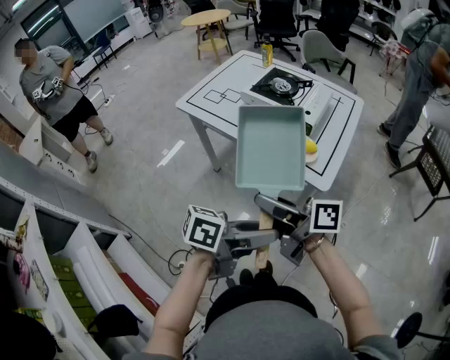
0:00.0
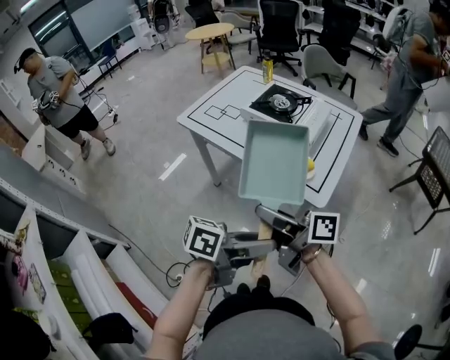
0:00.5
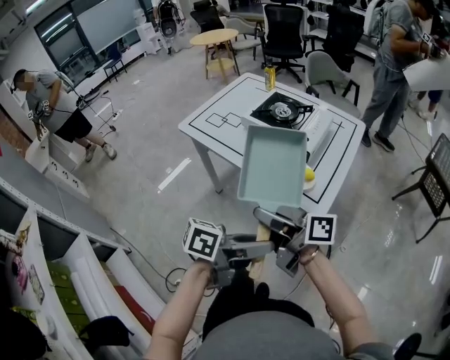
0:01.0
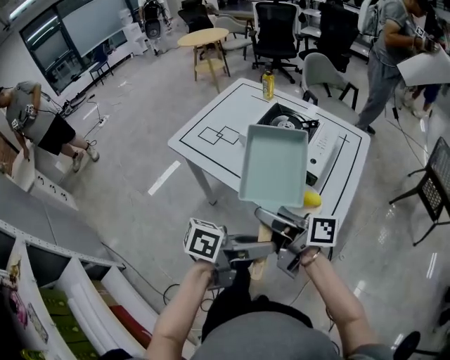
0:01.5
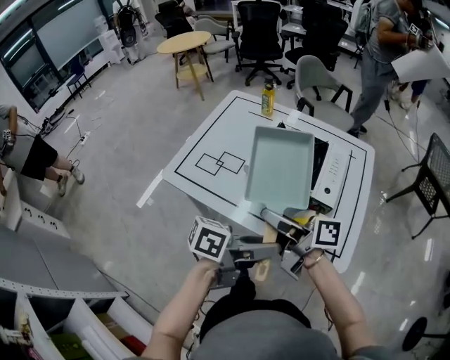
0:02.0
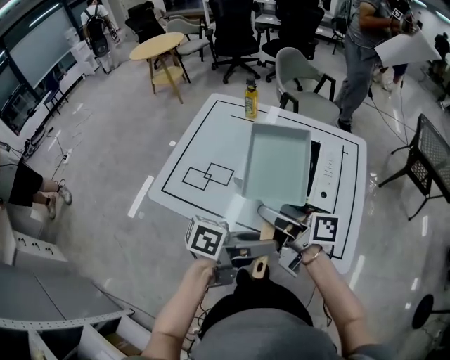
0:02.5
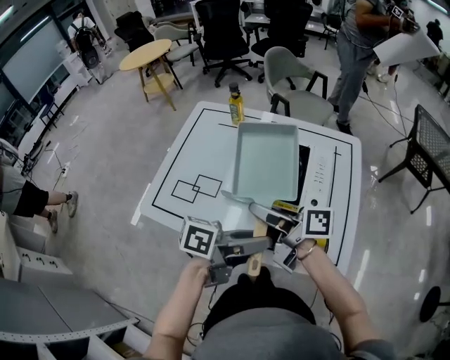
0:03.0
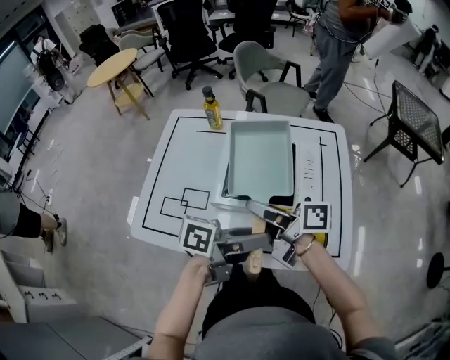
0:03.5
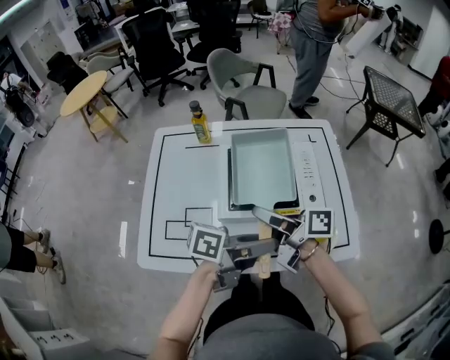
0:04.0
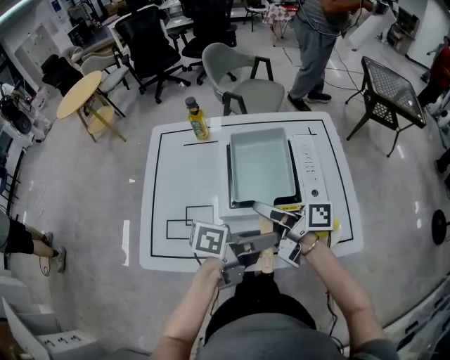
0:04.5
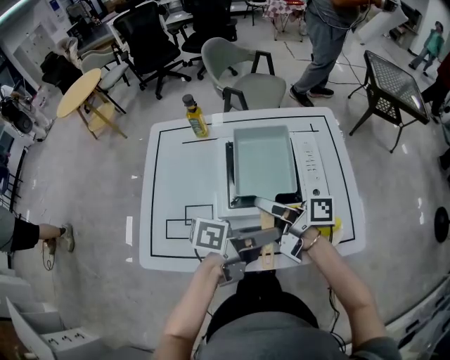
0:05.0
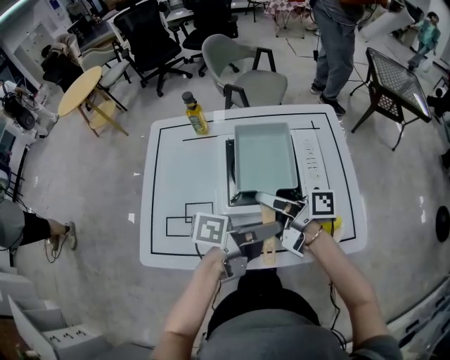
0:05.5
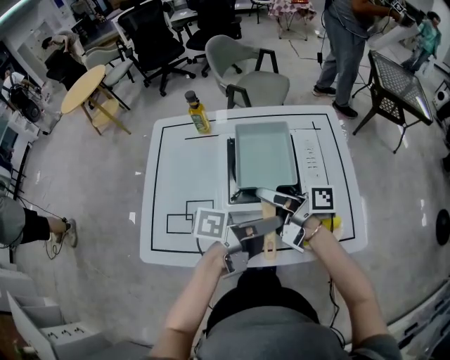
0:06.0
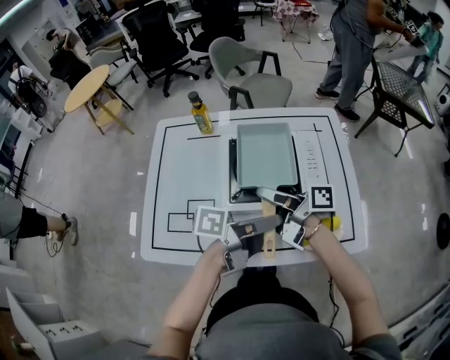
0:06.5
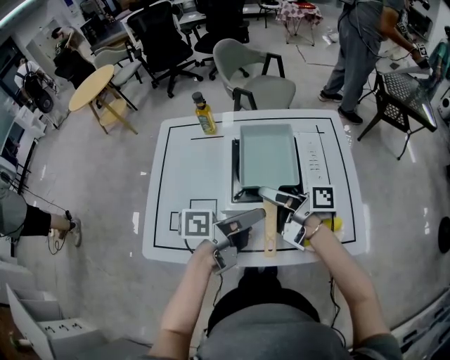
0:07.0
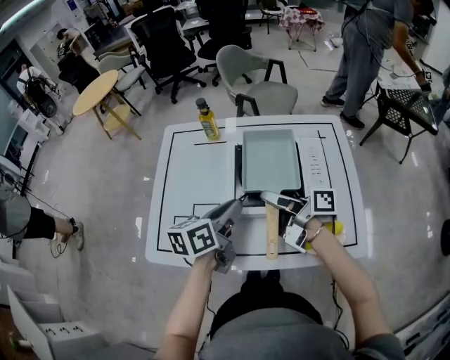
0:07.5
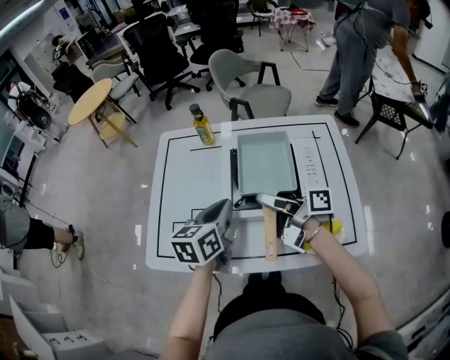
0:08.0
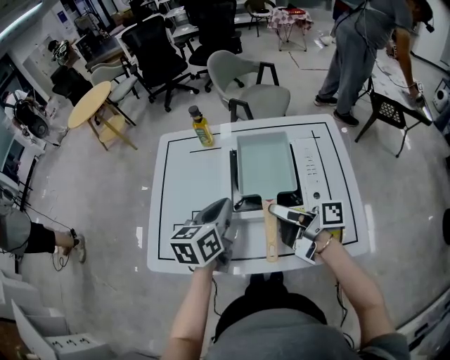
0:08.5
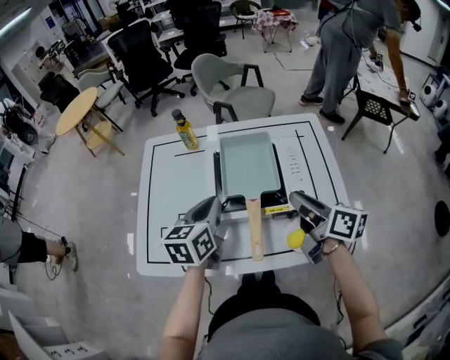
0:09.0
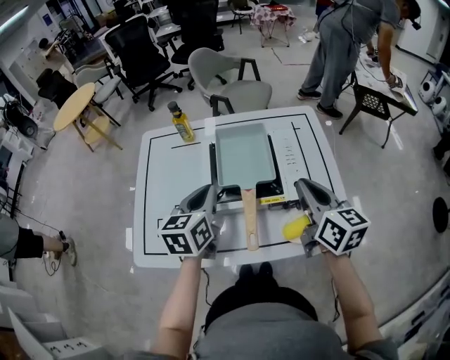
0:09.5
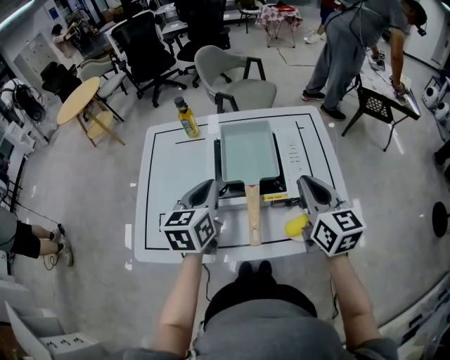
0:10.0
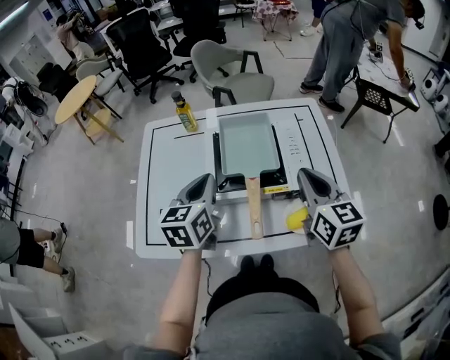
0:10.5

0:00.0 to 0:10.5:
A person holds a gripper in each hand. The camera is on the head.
0:00.0 to 0:02.0: The left gripper shifts by approximately 30 cm, while the right gripper moves approximately 30 cm.
0:02.0 to 0:04.0: The right gripper ends up about 15 cm from where it was, and rotates some 30 degrees. Meanwhile the left gripper ends up about 15 cm from where it was, and swivels roughly 30 degrees.
0:04.0 to 0:06.5: The grippers make only small movements.
0:06.5 to 0:08.5: The left gripper shifts by about 15 cm, turns by about 70 degrees, and closes.
0:08.5 to 0:10.5: The right gripper heads to the right and upward, covering some 15 cm, rolls counterclockwise, seen from behind, by some 60 degrees, and closes up.

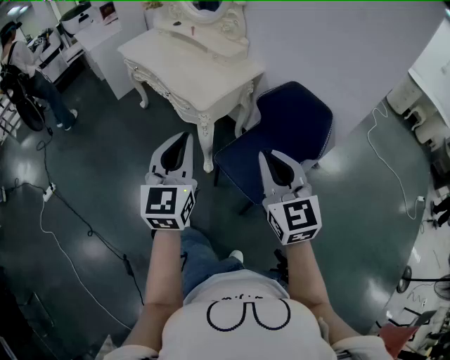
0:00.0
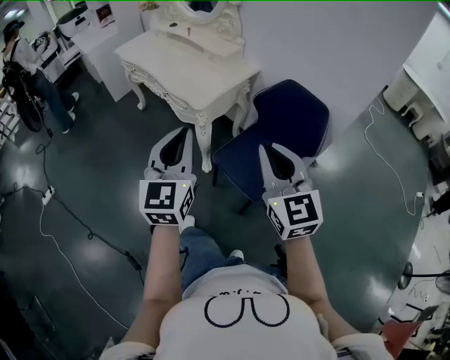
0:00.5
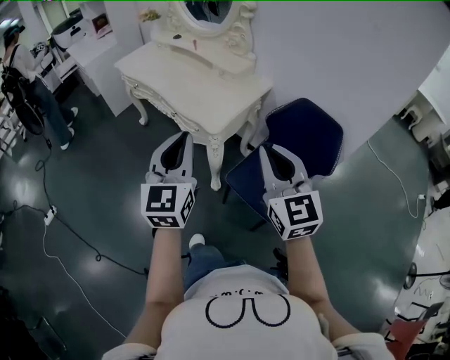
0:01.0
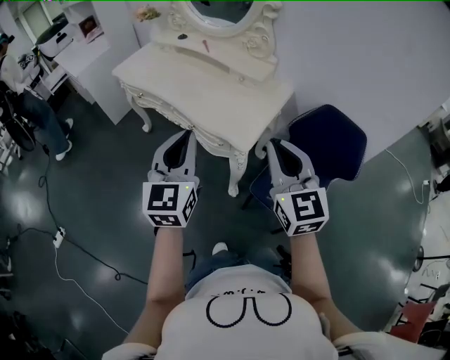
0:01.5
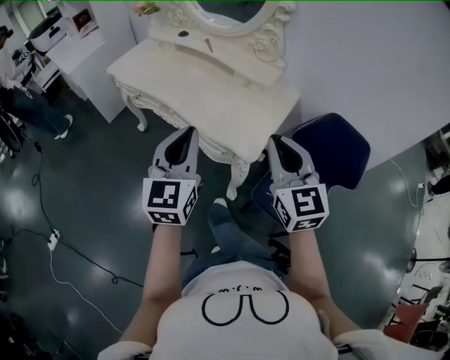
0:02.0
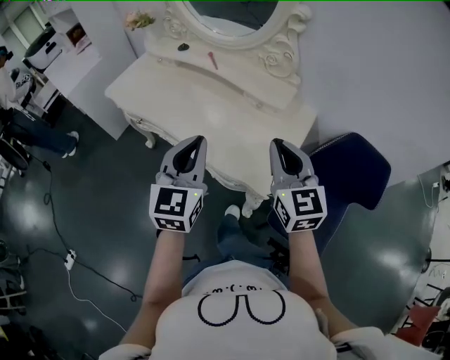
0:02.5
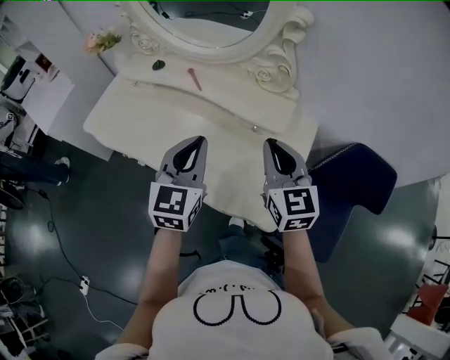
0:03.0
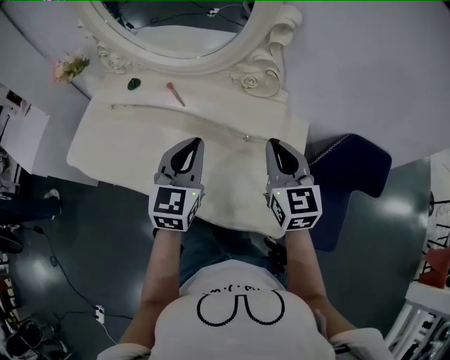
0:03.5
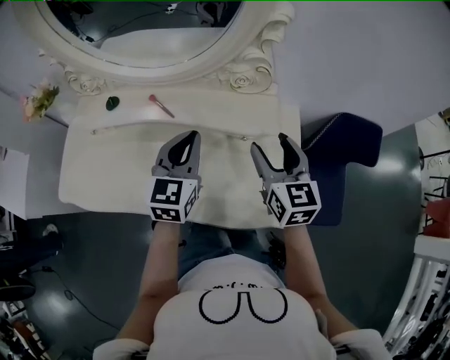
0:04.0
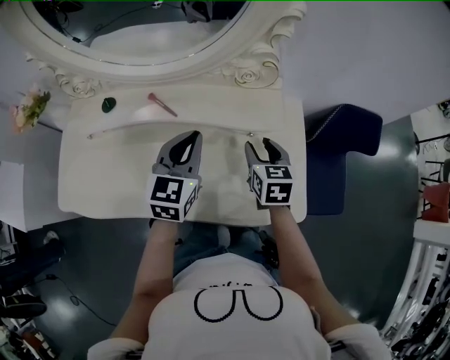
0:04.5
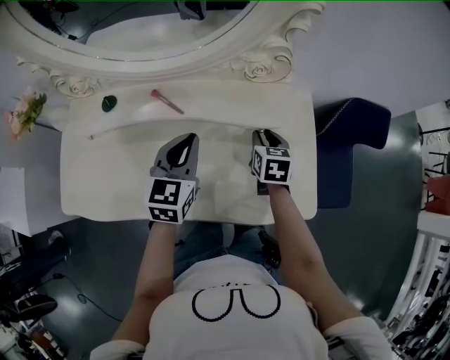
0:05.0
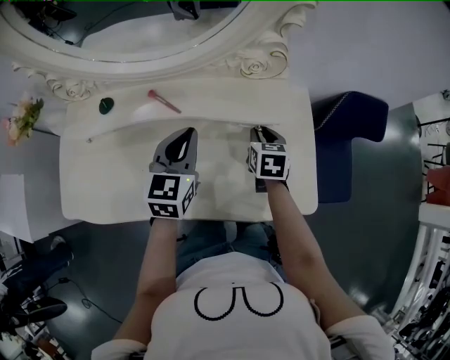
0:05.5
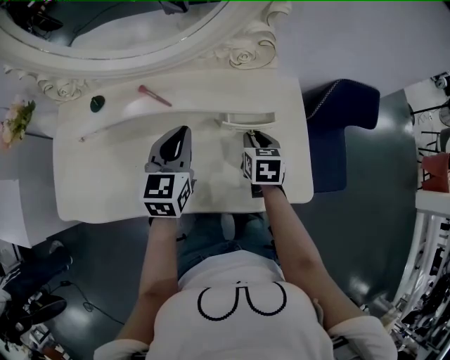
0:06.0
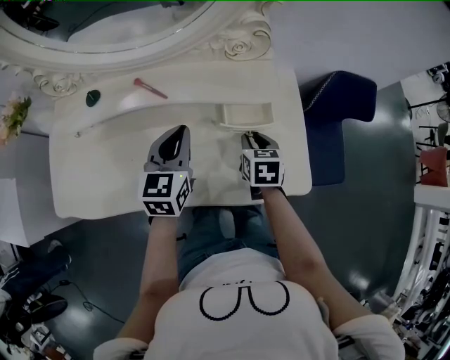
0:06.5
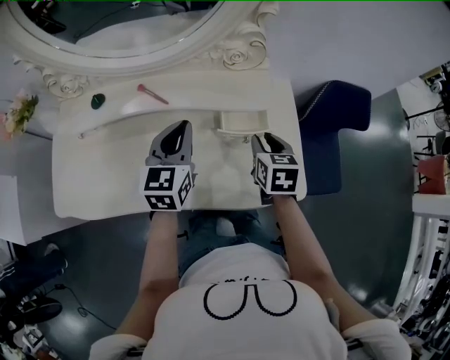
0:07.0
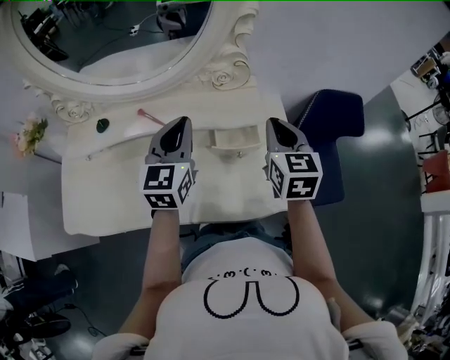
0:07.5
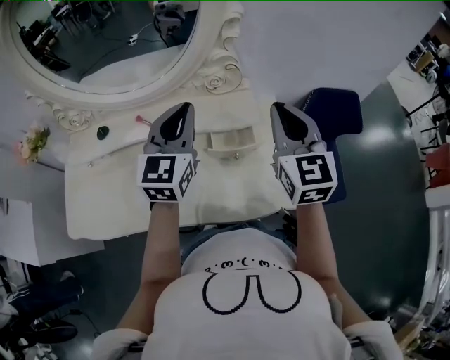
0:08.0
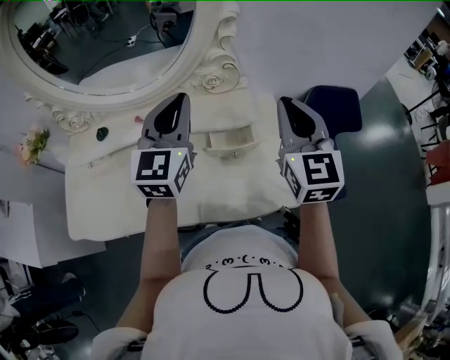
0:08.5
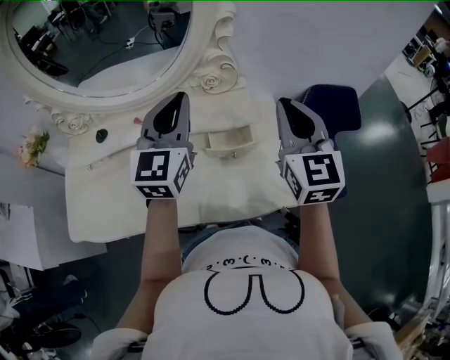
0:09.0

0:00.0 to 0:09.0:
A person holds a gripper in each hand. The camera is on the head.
0:00.0 to 0:02.0: The grippers both shift forward and to the left by about 35 cm.
0:02.0 to 0:04.5: The left gripper moves about 50 cm, and changes its angle by some 40 degrees; the right gripper changes place by roughly 40 cm, angles its fingers downward, by approximately 30 degrees, and opens.
0:07.0 to 0:09.0: Both grippers move upward, roughly 20 cm. The right gripper points its fingers approximately 40 degrees further upward, and closes up. The left gripper swivels some 20 degrees.

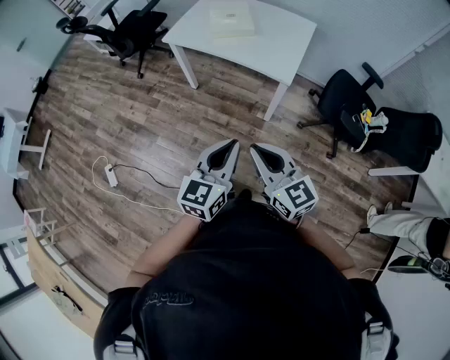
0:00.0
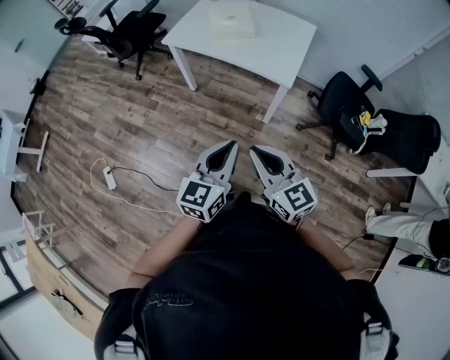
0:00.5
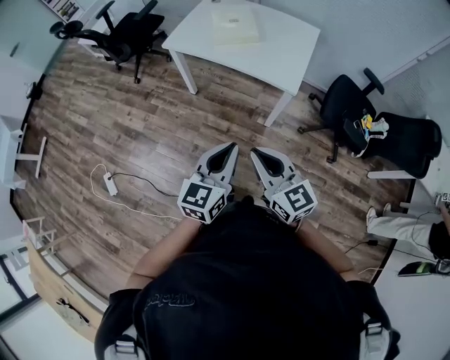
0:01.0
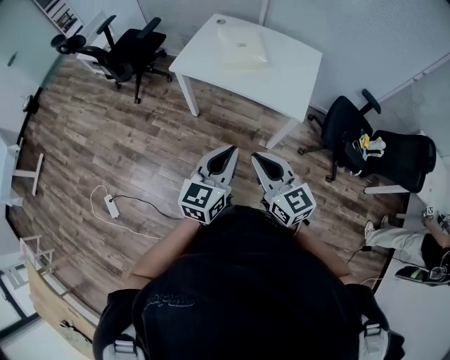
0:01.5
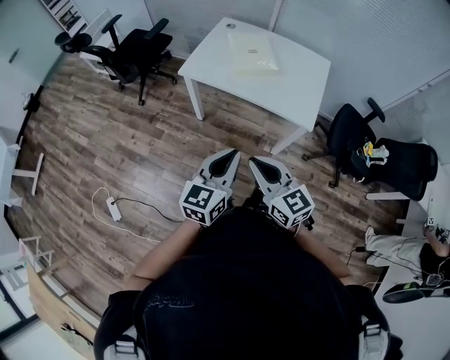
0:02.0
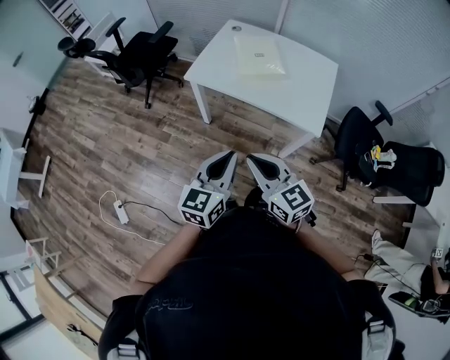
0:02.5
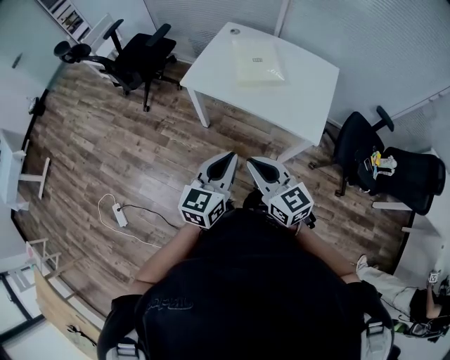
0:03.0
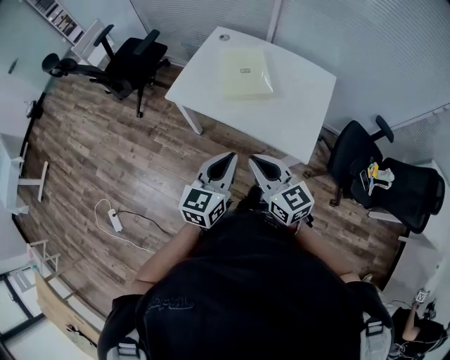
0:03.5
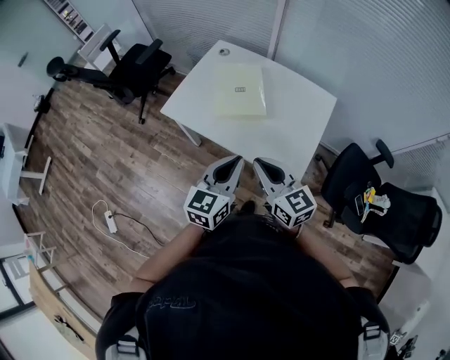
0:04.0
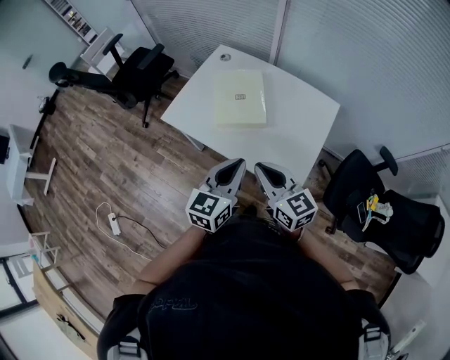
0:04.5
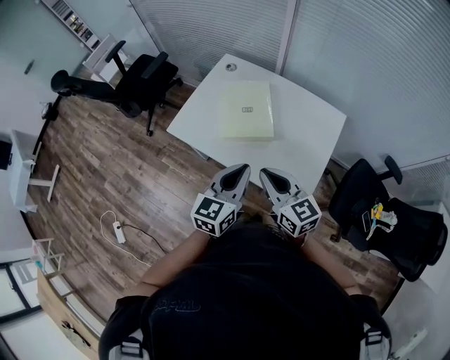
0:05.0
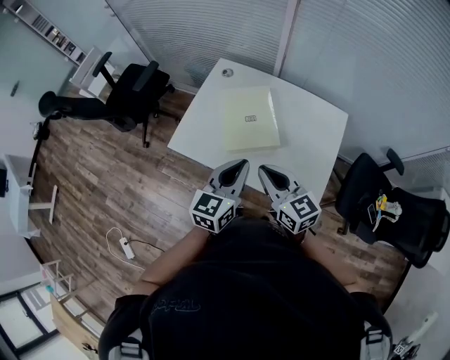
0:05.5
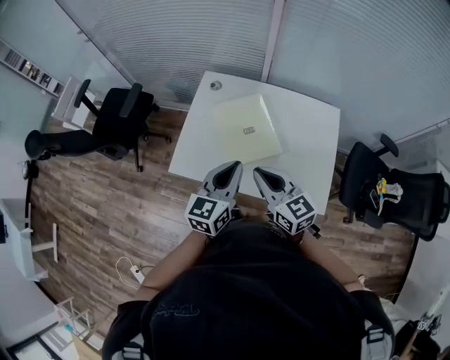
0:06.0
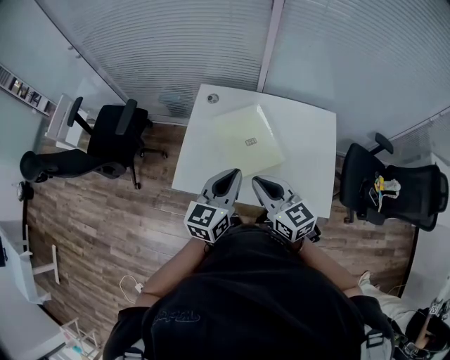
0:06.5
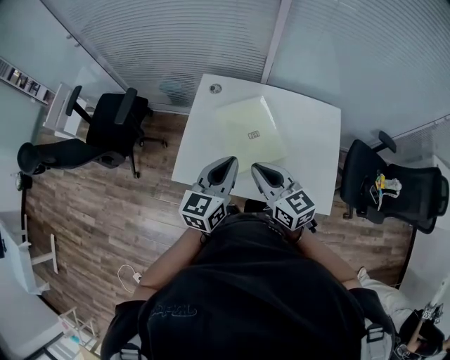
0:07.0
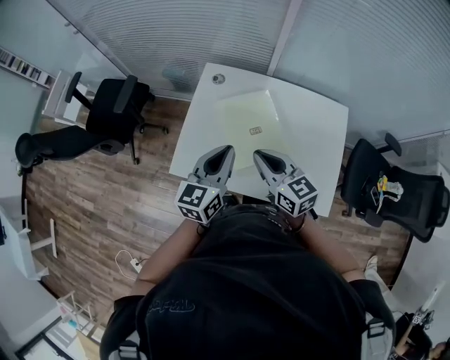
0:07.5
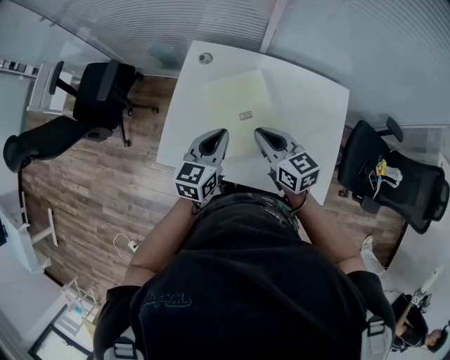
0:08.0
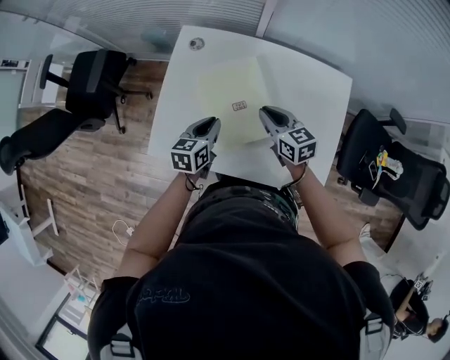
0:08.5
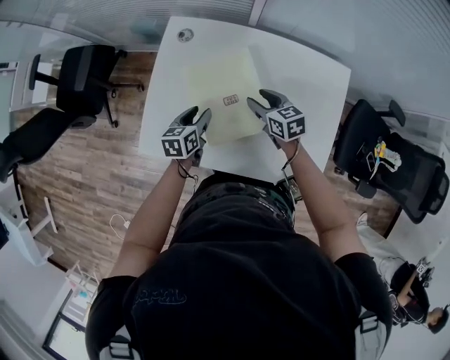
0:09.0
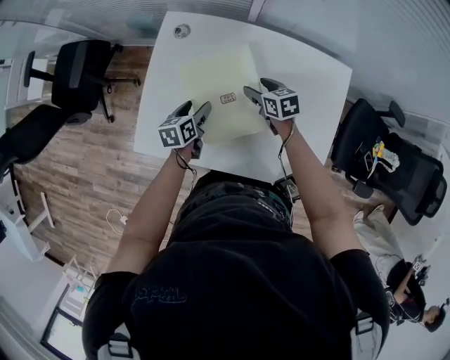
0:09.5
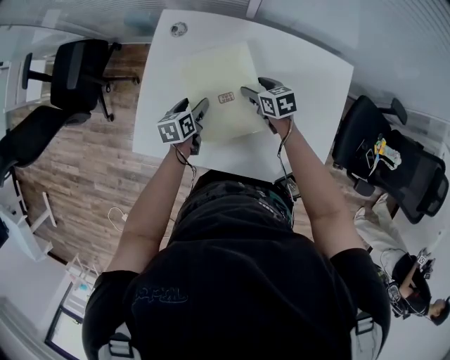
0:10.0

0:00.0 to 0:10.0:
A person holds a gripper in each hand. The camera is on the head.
0:00.0 to 0:02.0: Both grippers travel together forward and to the left, about 25 cm.
0:02.0 to 0:04.0: The grippers both shift forward and to the right by approximately 30 cm.
0:04.0 to 0:06.0: The two grippers go about 25 cm forward and to the left.
0:06.0 to 0:08.0: The grippers both shift forward and downward by roughly 15 cm.
0:08.0 to 0:10.0: The right gripper goes some 25 cm downward and forward, rotates about 30 degrees, and opens its fingers, while the left gripper heads downward, covering approximately 25 cm, swivels some 30 degrees, and opens.
